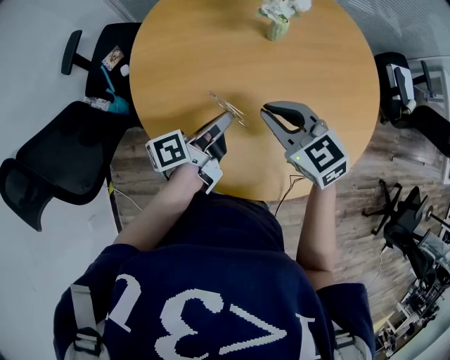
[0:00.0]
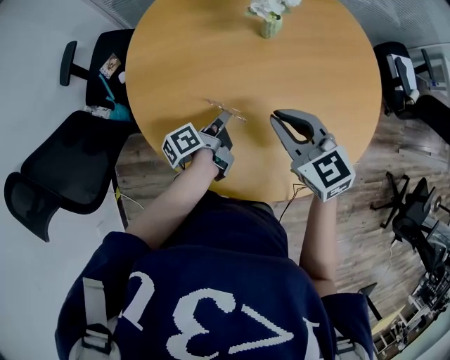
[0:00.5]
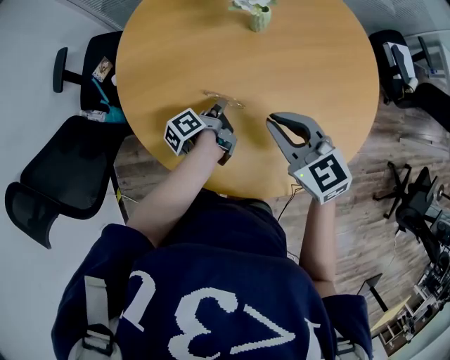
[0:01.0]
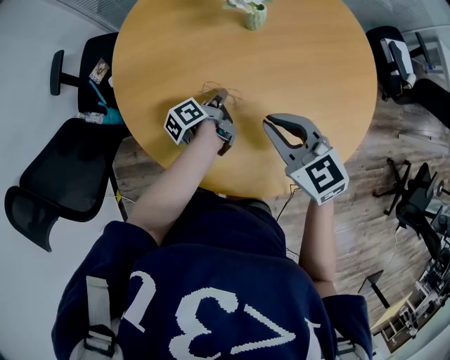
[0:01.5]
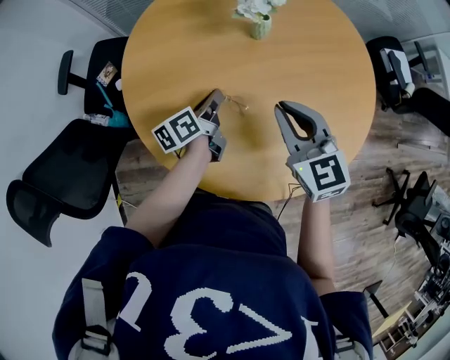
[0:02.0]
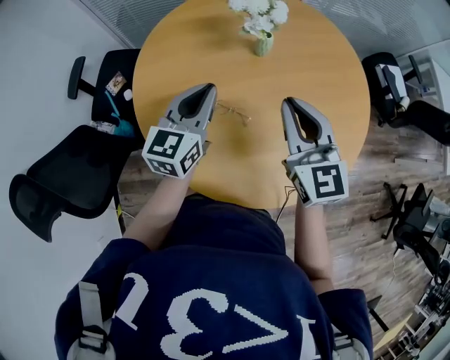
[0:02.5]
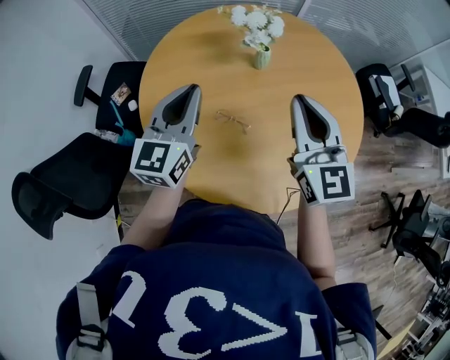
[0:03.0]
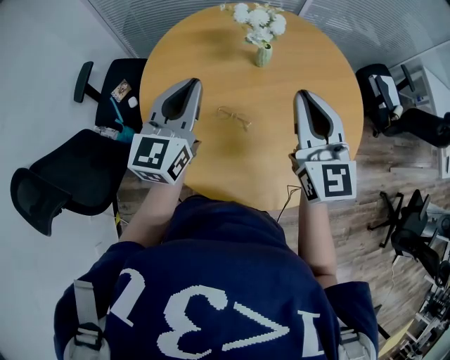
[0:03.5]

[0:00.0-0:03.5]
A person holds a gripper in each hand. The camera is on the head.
0:00.0 to 0:02.0: The left gripper moves forward and downward, roughly 10 cm, and rotates some 20 degrees. Meanwhile the right gripper travels to the right by approximately 5 cm, and turns by approximately 20 degrees.
0:02.0 to 0:03.5: The left gripper goes about 25 cm upward, and rolls clockwise, seen from behind, by about 60 degrees; the right gripper is displaced upward by some 15 cm, and turns by approximately 20 degrees.

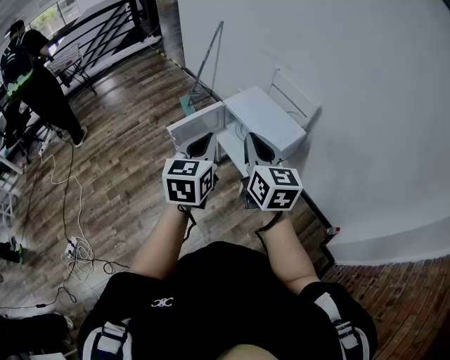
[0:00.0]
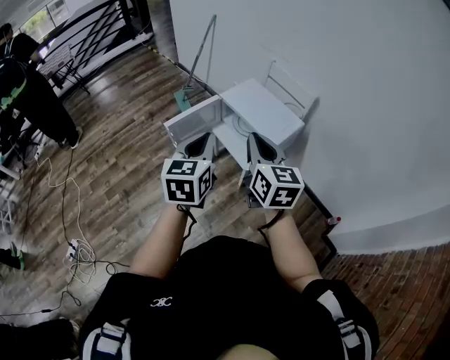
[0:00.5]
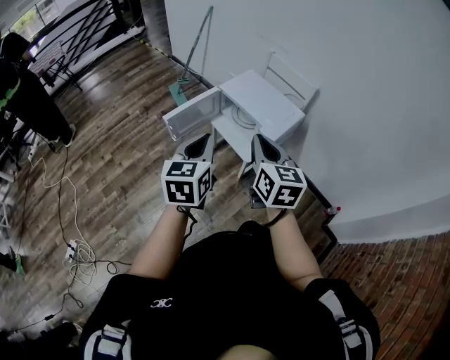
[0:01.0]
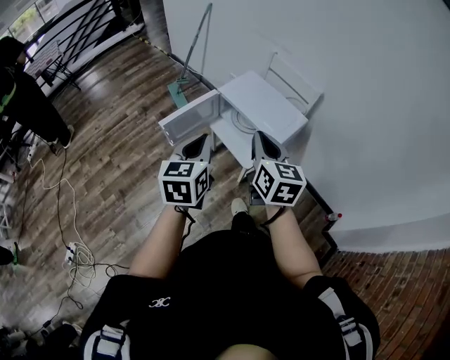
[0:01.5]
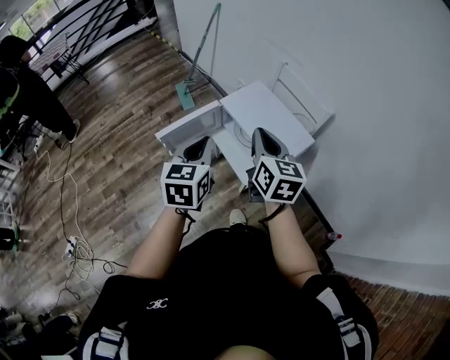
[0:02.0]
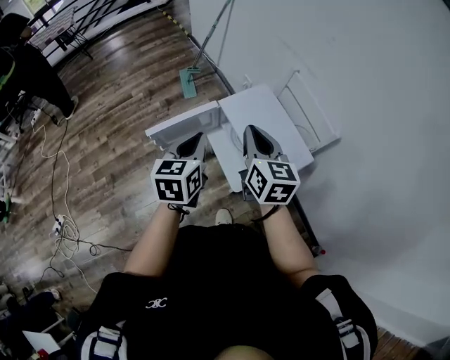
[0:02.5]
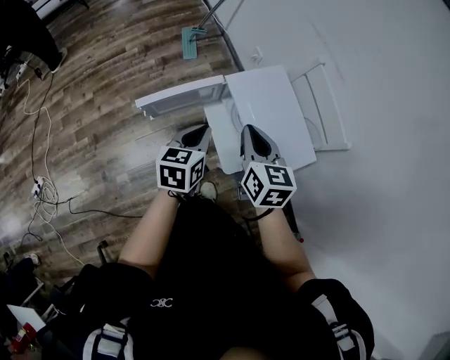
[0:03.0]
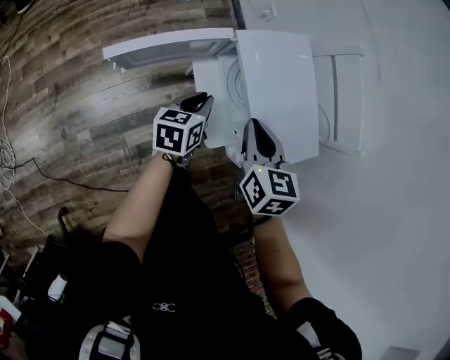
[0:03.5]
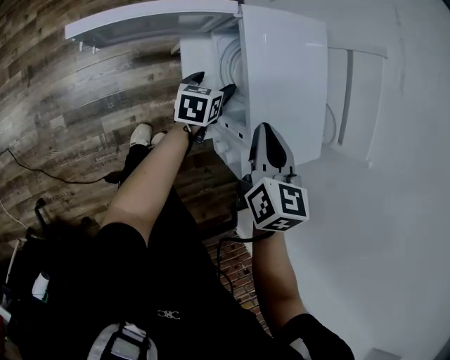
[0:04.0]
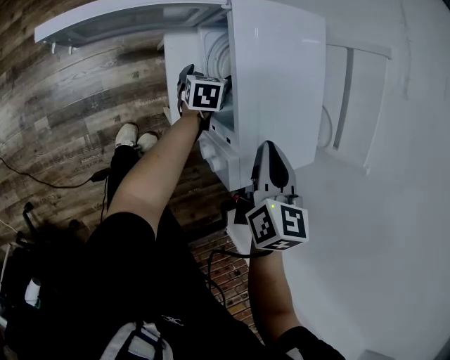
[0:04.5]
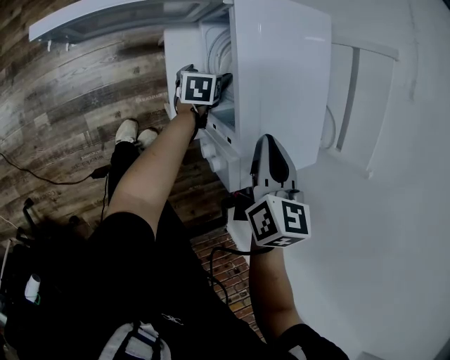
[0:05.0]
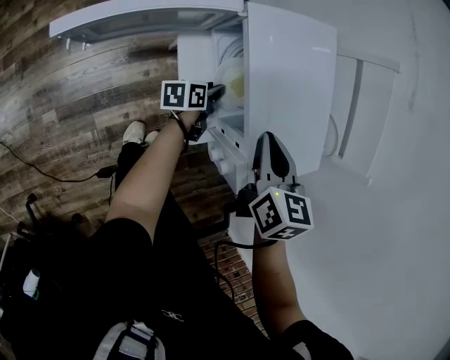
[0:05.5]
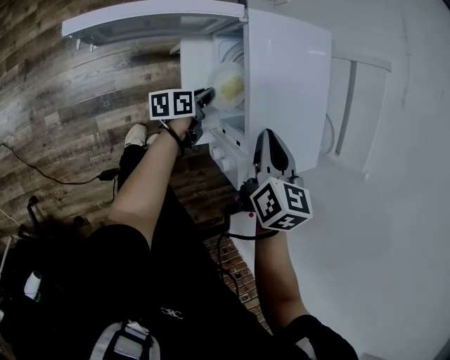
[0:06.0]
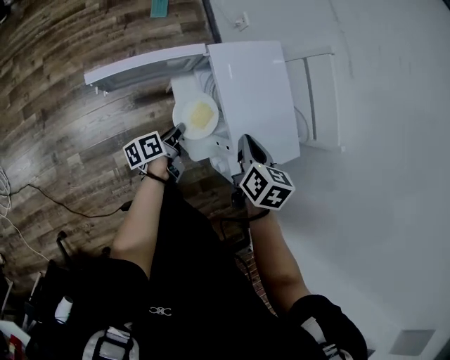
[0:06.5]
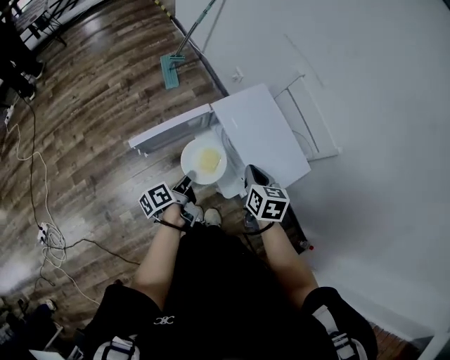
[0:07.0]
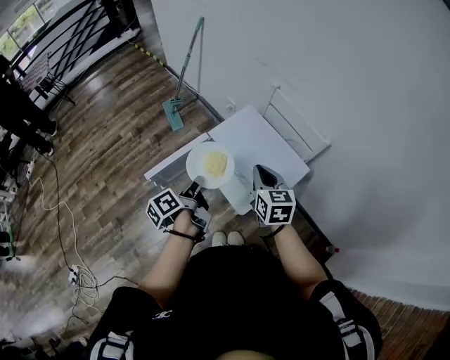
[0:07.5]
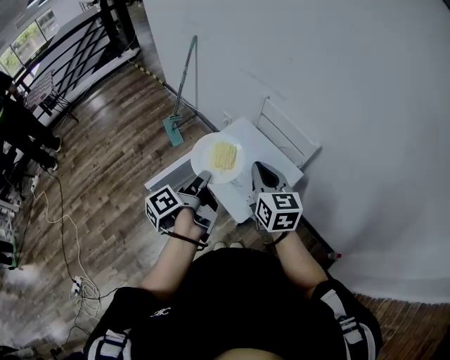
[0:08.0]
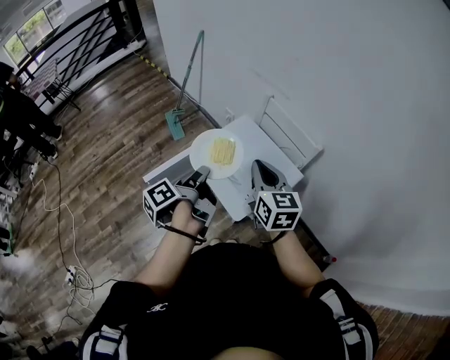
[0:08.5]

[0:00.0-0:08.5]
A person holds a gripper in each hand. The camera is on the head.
0:00.0 to 0:02.0: The two grippers go approximately 20 cm forward and downward.
0:02.0 to 0:04.0: The right gripper moves downward and forward, approximately 30 cm, and swivels some 30 degrees. Meanwhile the left gripper shifts approximately 50 cm downward and forward, turns by approximately 40 degrees, and opens.
0:04.0 to 0:06.5: The left gripper goes some 15 cm backward, to the left and upward, changes its angle by some 40 degrees, and closes its fingers.
0:06.5 to 0:08.5: The grippers both shift upward by approximately 35 cm. The right gripper points its fingers approximately 30 degrees further upward.

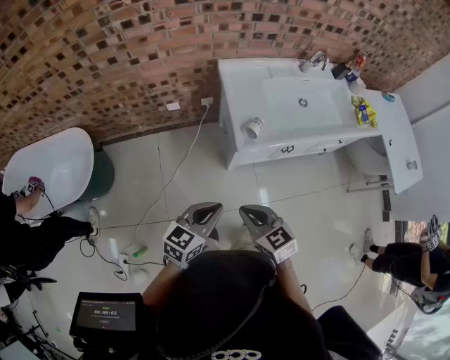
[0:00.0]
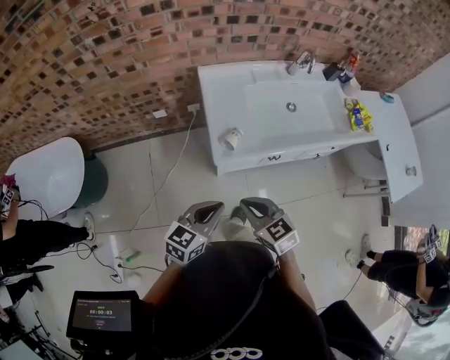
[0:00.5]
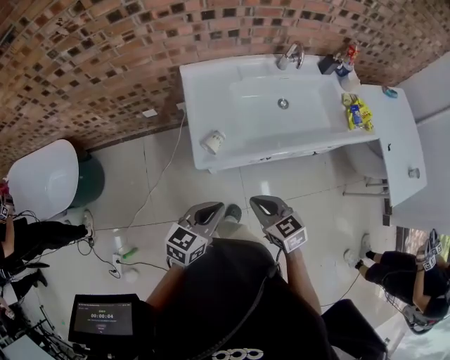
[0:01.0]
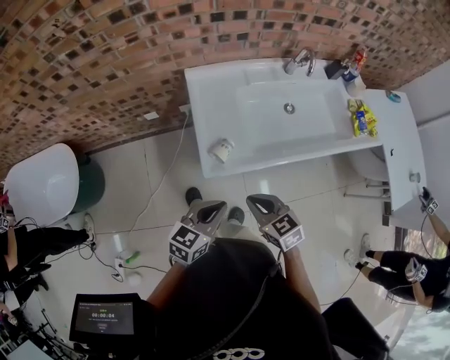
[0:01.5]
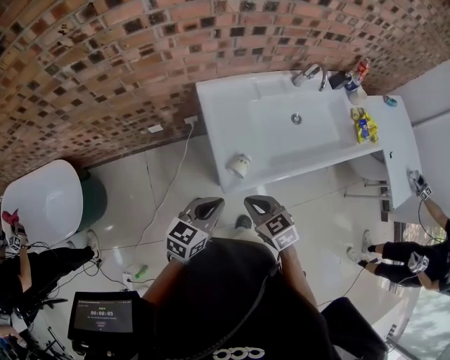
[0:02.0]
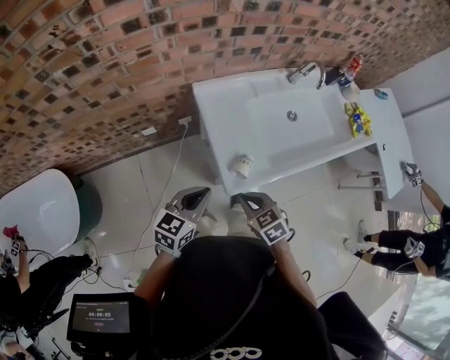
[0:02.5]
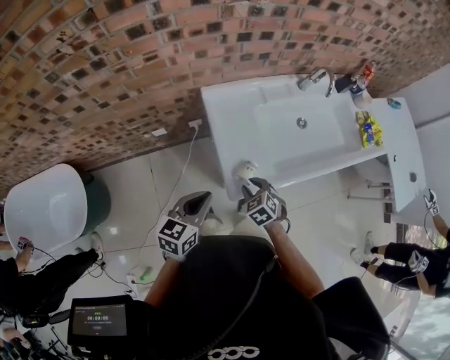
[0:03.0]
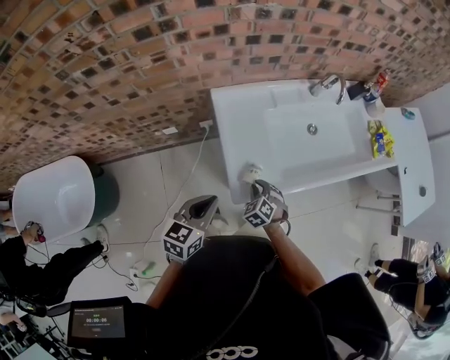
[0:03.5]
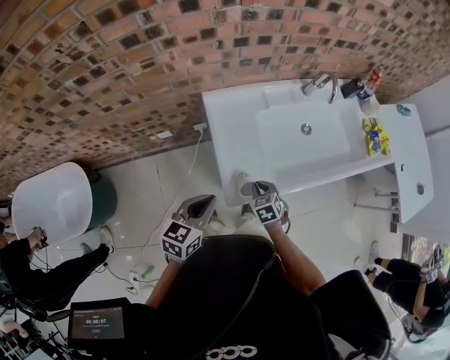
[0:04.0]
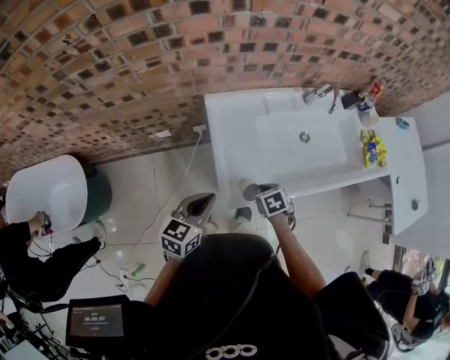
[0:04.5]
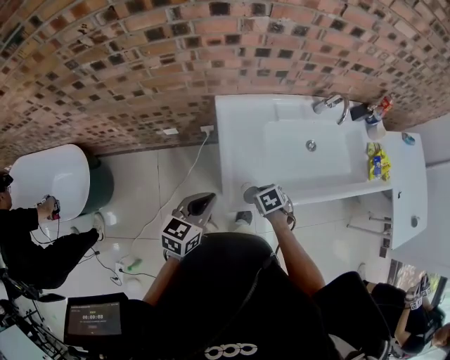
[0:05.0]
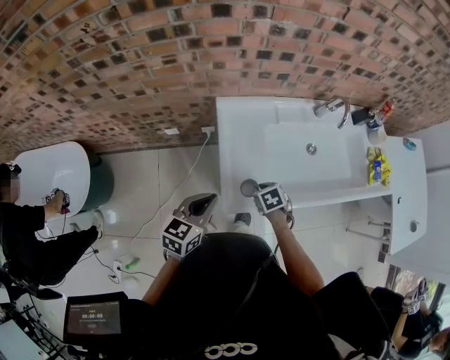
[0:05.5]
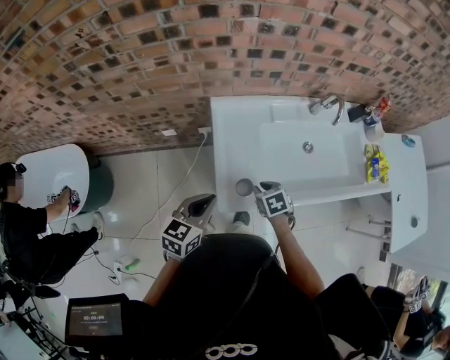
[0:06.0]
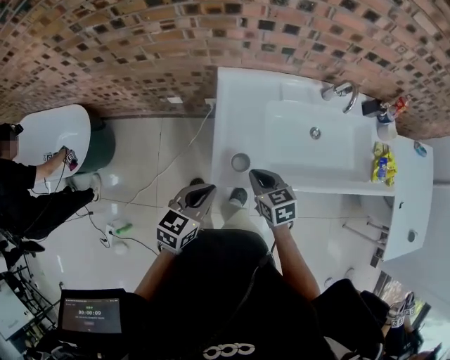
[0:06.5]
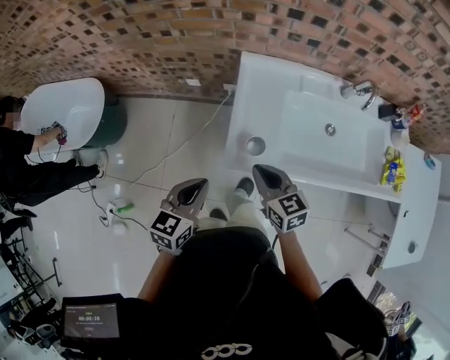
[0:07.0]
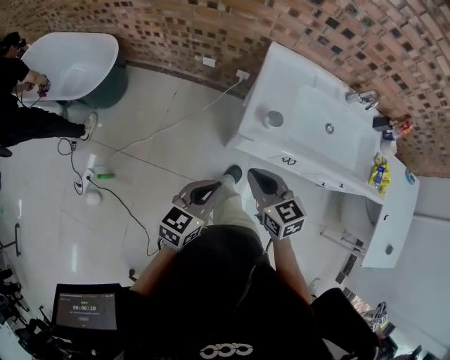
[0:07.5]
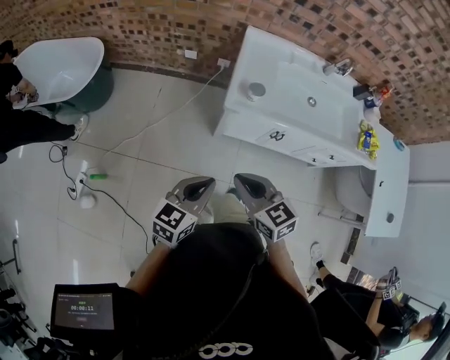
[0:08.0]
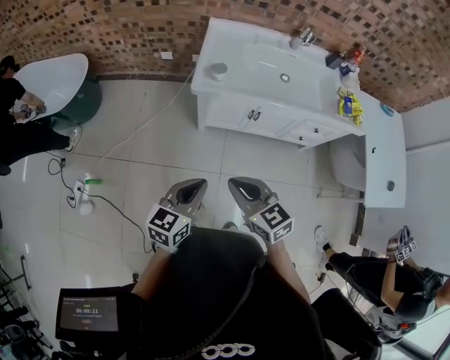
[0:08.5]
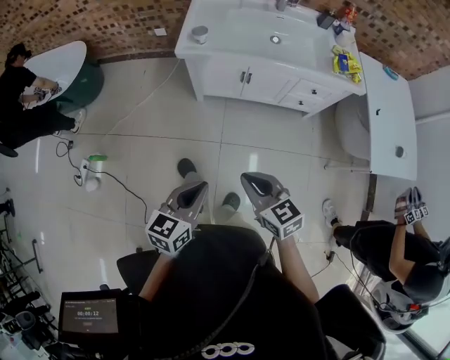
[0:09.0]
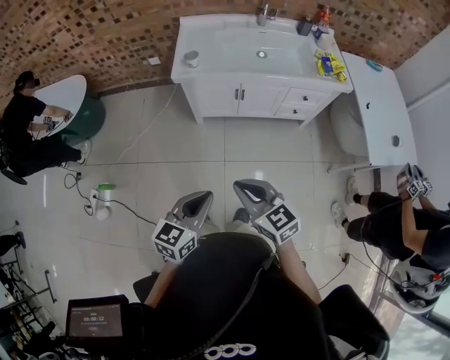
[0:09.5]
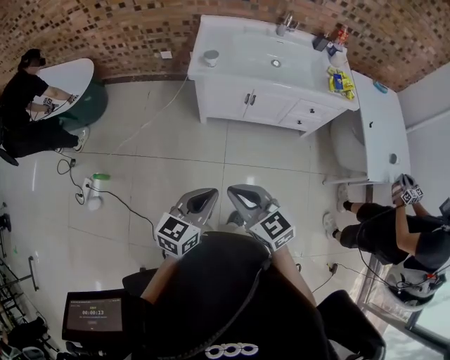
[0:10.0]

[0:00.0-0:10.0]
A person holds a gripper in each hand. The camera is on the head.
0:00.0 to 0:02.0: Both grippers travel together forward, about 20 cm.
0:02.0 to 0:04.0: The left gripper travels forward by about 5 cm. The right gripper is displaced downward and forward by some 20 cm, and opens, then closes again.
0:06.0 to 0:08.0: The right gripper heads backward and upward, covering about 40 cm, and tips its fingers upward by some 40 degrees. Meanwhile the left gripper heads backward, covering some 40 cm.
0:08.0 to 0:10.0: The grippers both shift backward and to the right by roughly 30 cm.

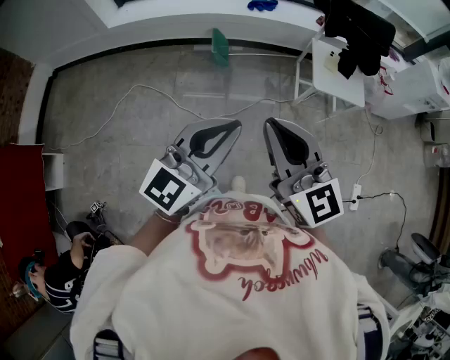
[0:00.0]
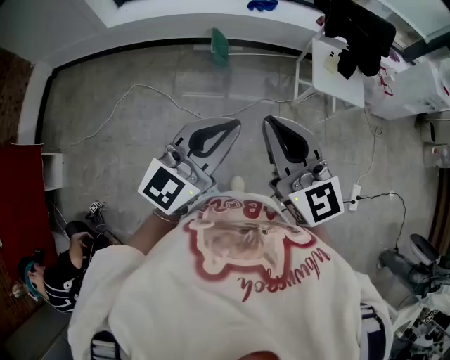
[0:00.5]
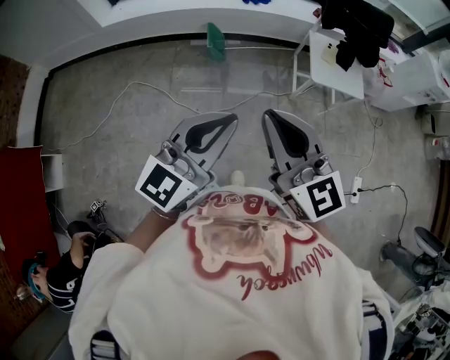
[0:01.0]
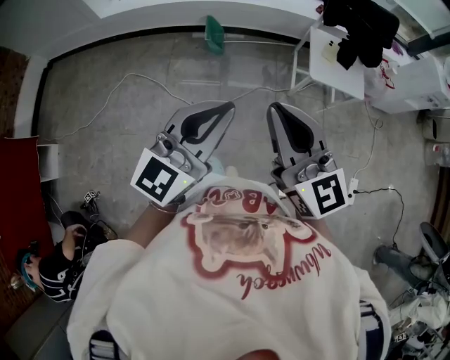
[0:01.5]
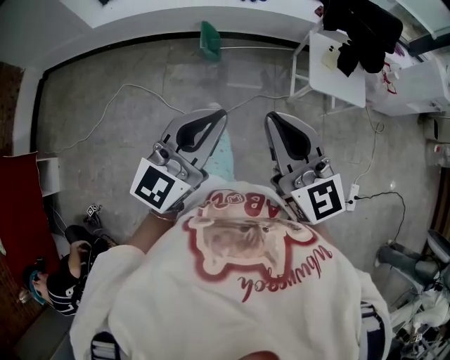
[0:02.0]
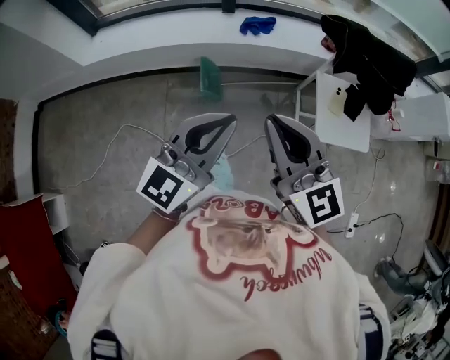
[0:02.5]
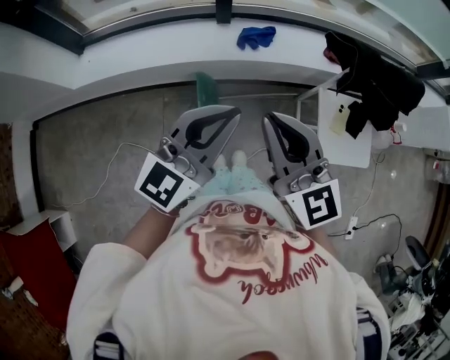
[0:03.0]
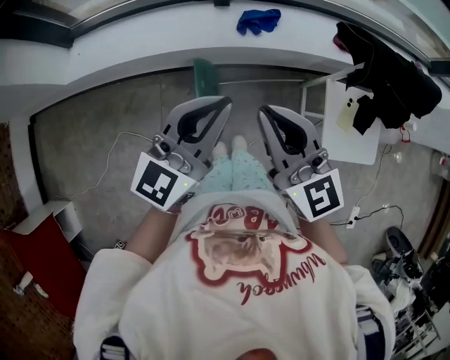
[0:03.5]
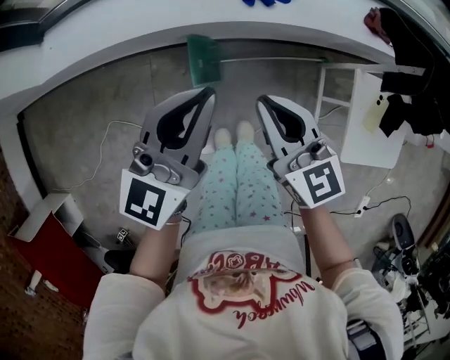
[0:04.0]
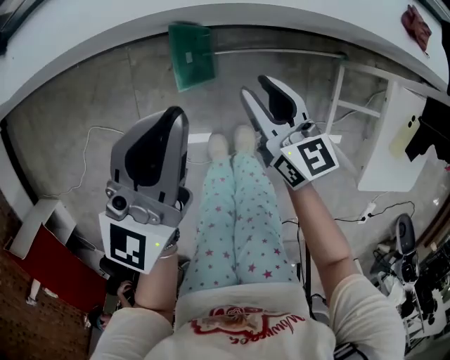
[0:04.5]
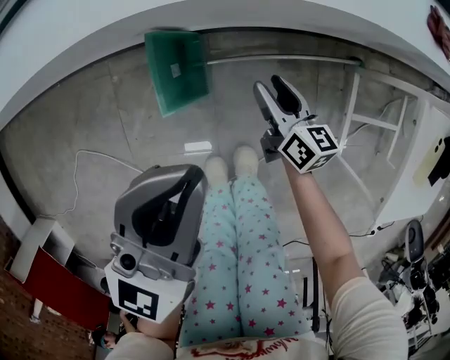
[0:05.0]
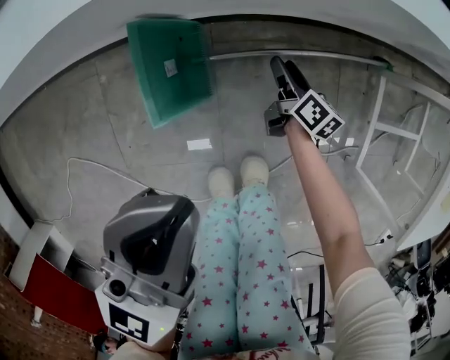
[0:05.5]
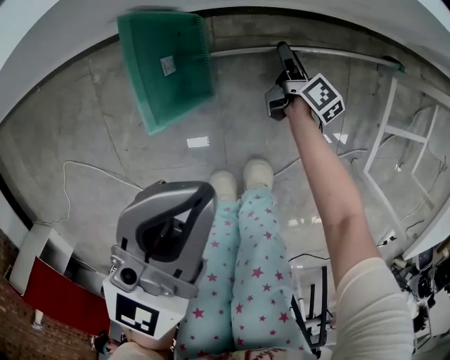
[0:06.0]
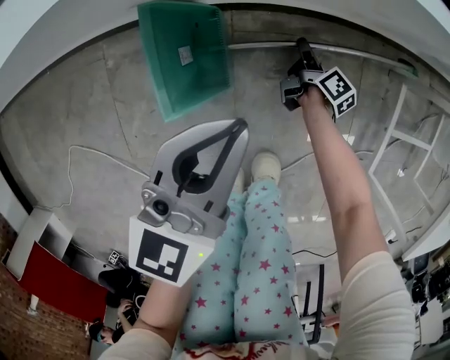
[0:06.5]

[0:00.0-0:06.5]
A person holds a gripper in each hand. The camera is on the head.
0:00.0 to 0:02.0: The left gripper goes some 10 cm forward. The right gripper goes about 10 cm forward and to the right.
0:02.0 to 0:04.5: The two grippers travel together, forward, approximately 60 cm. The right gripper shifts some 50 cm downward, rotates approximately 30 degrees, and opens up; the left gripper travels downward by about 35 cm.
0:04.5 to 0:06.5: The left gripper travels downward by roughly 30 cm; the right gripper moves downward, roughly 50 cm, rolls clockwise, seen from behind, by about 50 degrees, and opens, then closes again.
